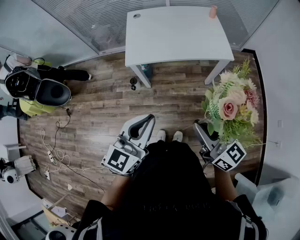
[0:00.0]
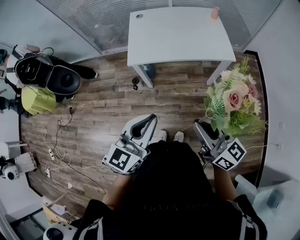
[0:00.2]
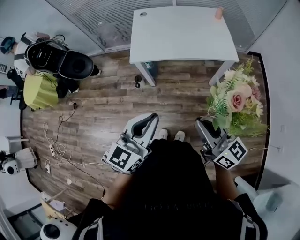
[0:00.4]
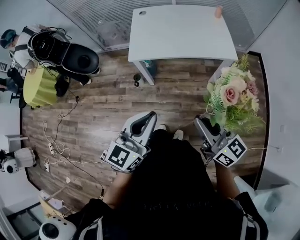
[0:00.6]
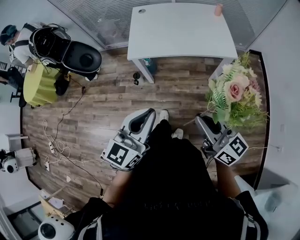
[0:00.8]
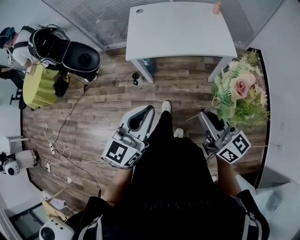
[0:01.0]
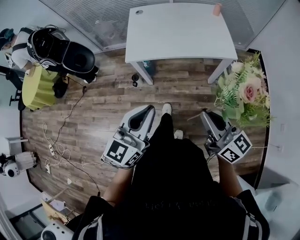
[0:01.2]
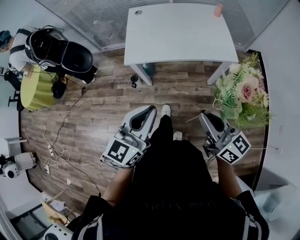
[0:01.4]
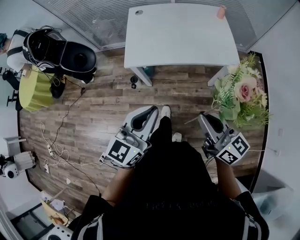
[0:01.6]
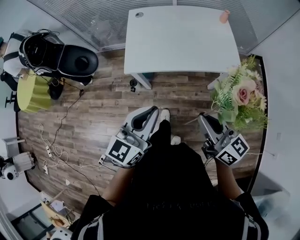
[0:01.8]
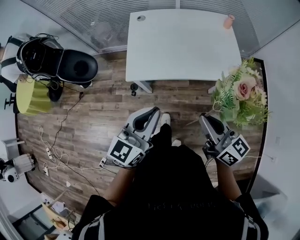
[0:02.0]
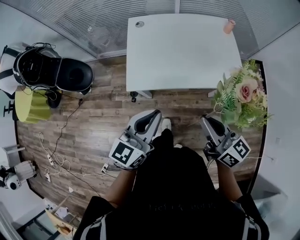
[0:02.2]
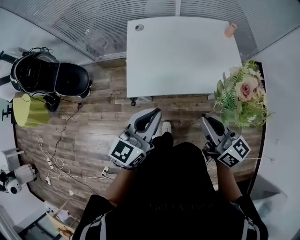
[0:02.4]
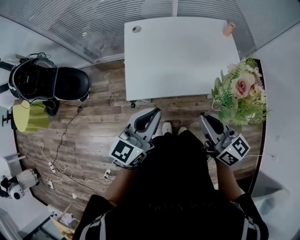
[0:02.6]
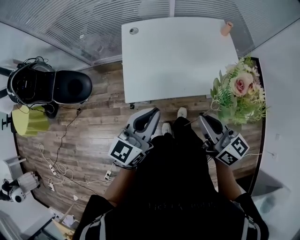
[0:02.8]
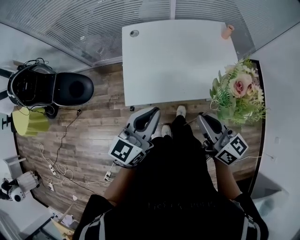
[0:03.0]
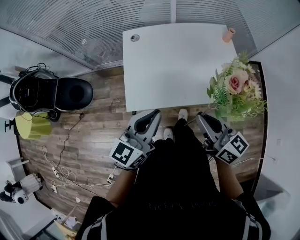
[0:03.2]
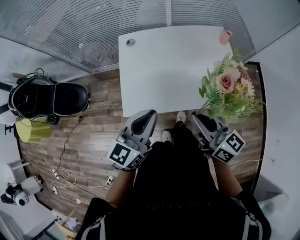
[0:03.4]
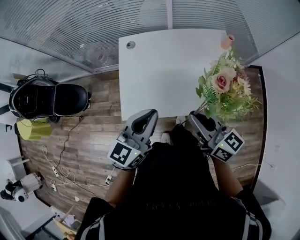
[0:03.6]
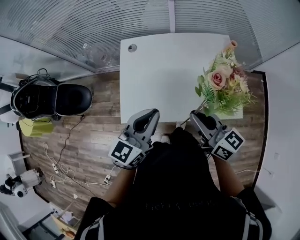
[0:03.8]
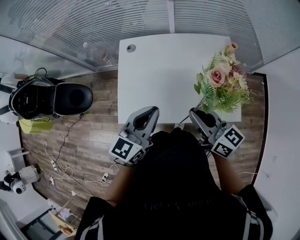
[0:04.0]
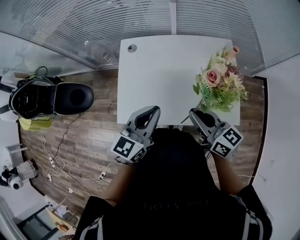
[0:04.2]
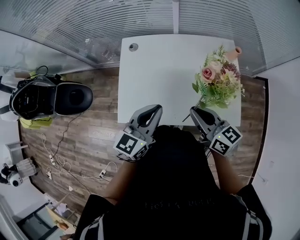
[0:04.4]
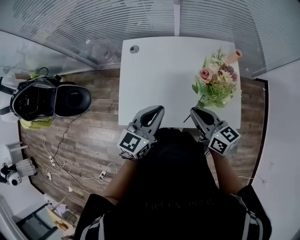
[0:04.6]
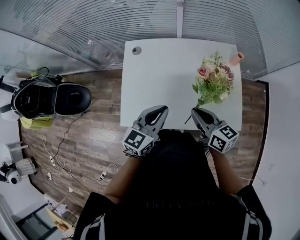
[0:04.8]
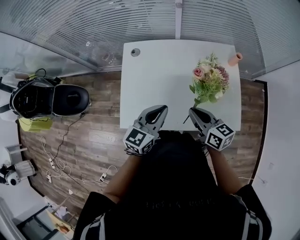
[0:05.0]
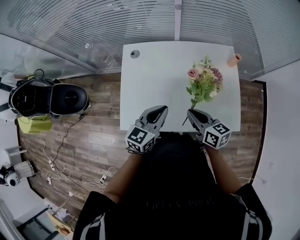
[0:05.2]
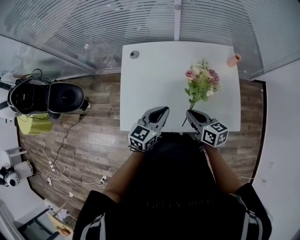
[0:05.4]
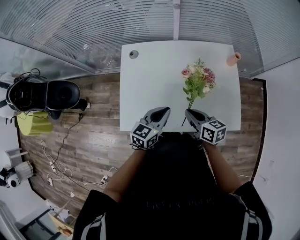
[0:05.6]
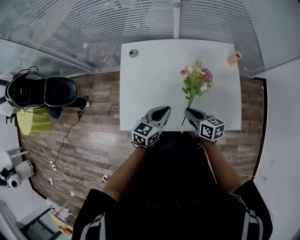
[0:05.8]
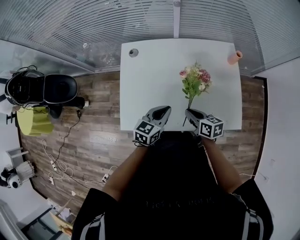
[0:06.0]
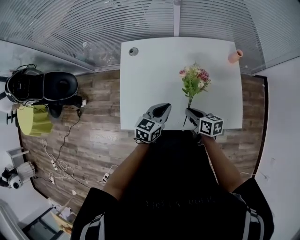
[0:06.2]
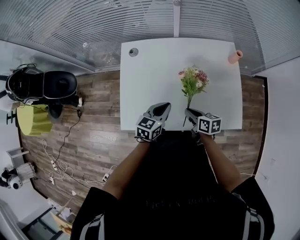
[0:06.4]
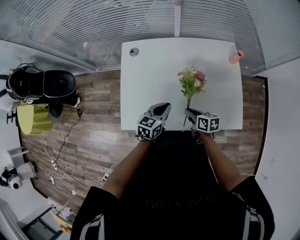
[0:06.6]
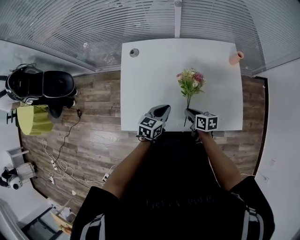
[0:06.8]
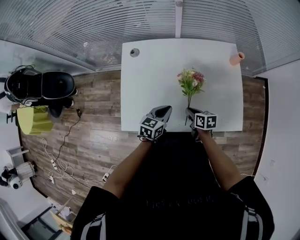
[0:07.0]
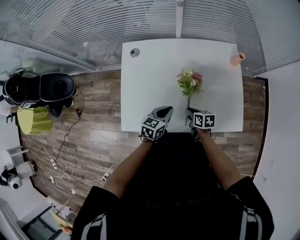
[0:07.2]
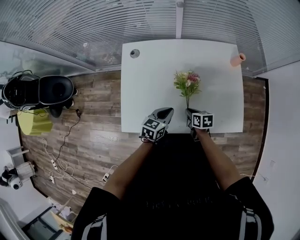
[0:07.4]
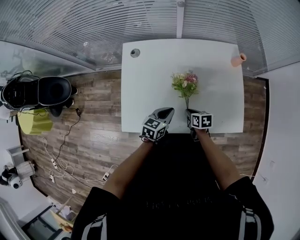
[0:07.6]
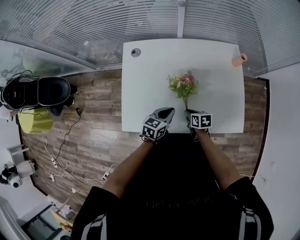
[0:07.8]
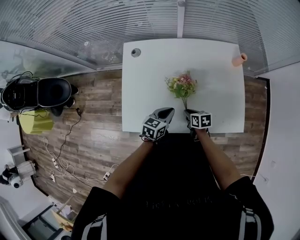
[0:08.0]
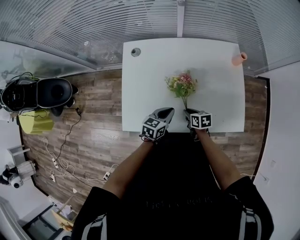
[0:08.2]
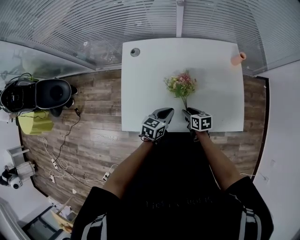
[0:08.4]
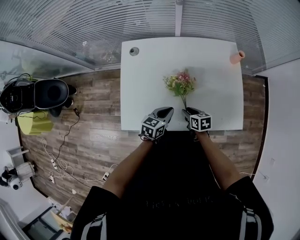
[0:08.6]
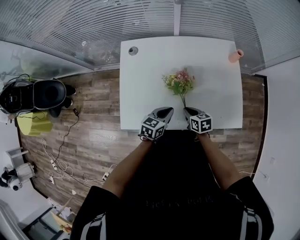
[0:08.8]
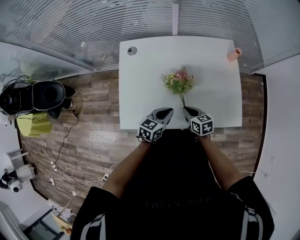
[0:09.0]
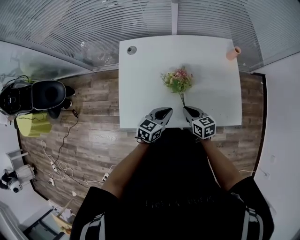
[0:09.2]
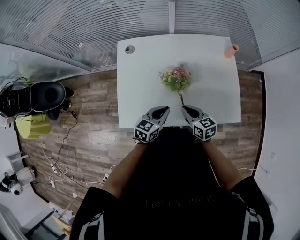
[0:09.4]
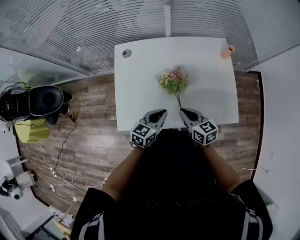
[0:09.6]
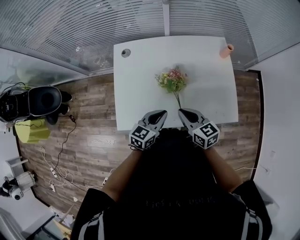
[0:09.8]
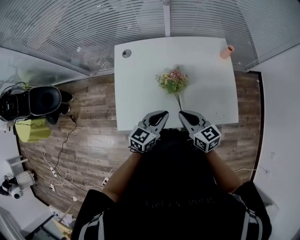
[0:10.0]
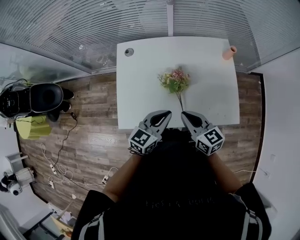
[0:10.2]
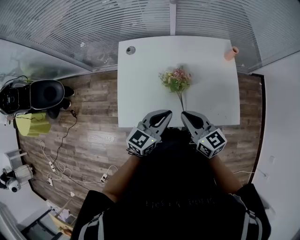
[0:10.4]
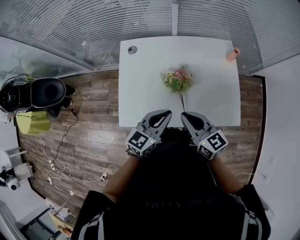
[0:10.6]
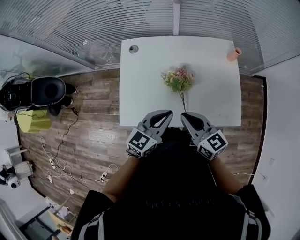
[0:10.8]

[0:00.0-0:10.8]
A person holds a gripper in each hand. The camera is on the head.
0:00.0 to 0:01.6: Both grippers move forward, about 10 cm.
0:01.6 to 0:03.0: The grippers both shift forward by roughly 25 cm.
0:03.0 to 0:04.6: The two grippers go about 15 cm forward, to the right and downward.
0:04.6 to 0:06.2: Both grippers move downward, some 15 cm. The right gripper rotates some 30 degrees.
0:06.2 to 0:07.8: The right gripper goes some 10 cm downward; the left gripper shifts approximately 5 cm downward.
0:07.8 to 0:09.2: The right gripper moves upward, about 10 cm, swivels approximately 20 degrees, and opens and closes again.
0:09.2 to 0:10.8: Both grippers move upward, some 15 cm. The right gripper changes its angle by roughly 20 degrees.

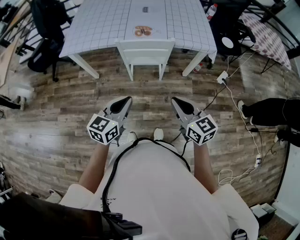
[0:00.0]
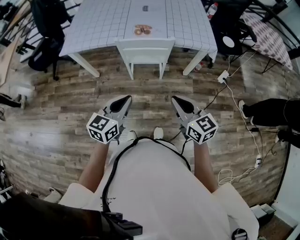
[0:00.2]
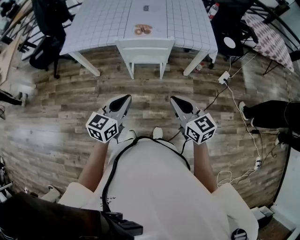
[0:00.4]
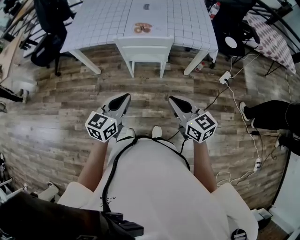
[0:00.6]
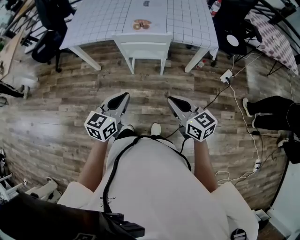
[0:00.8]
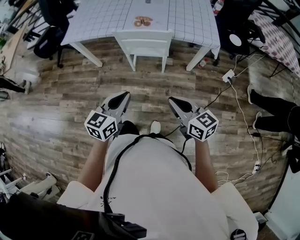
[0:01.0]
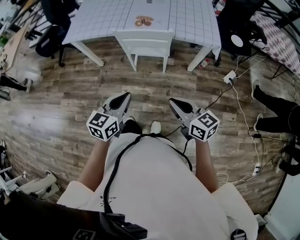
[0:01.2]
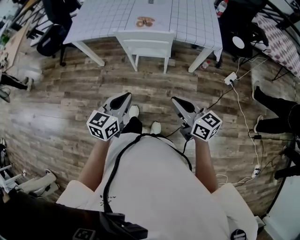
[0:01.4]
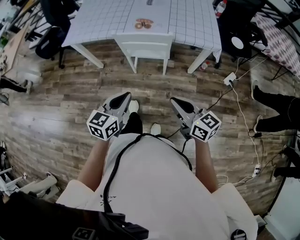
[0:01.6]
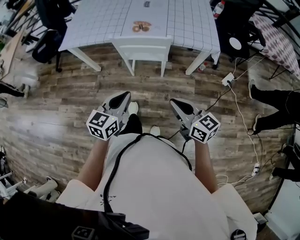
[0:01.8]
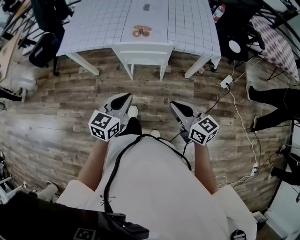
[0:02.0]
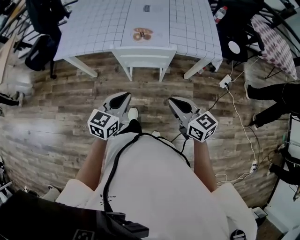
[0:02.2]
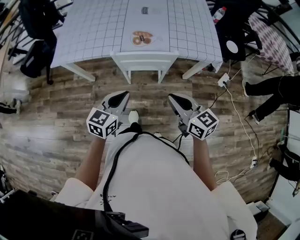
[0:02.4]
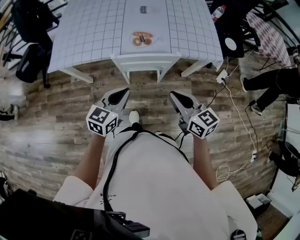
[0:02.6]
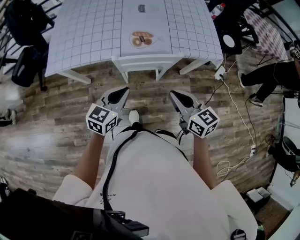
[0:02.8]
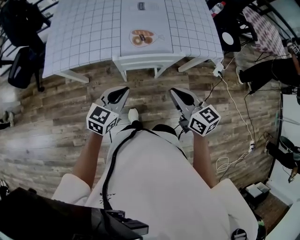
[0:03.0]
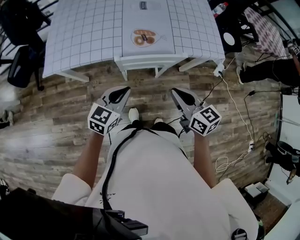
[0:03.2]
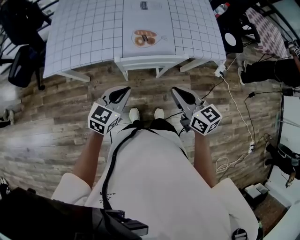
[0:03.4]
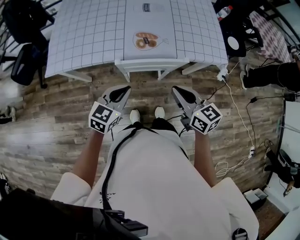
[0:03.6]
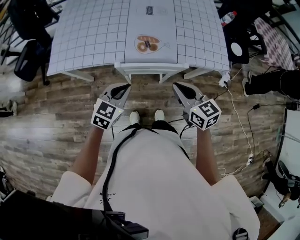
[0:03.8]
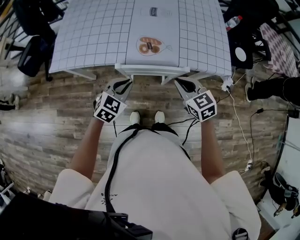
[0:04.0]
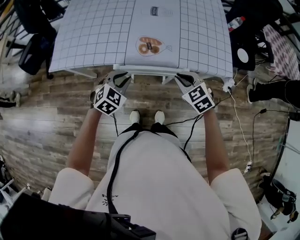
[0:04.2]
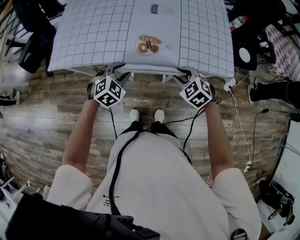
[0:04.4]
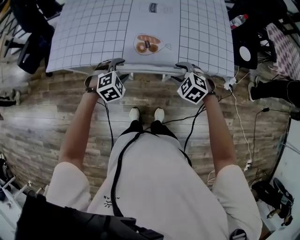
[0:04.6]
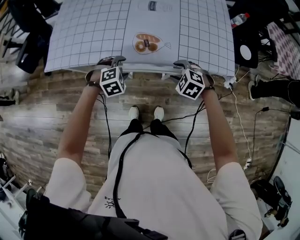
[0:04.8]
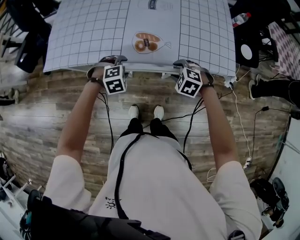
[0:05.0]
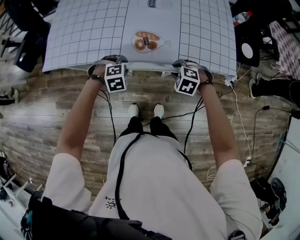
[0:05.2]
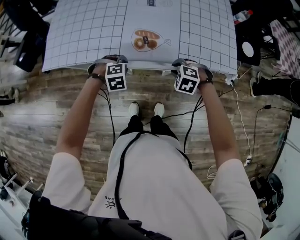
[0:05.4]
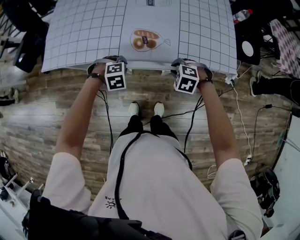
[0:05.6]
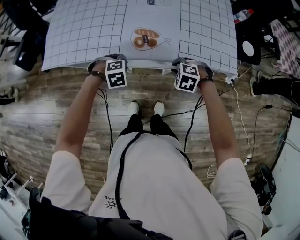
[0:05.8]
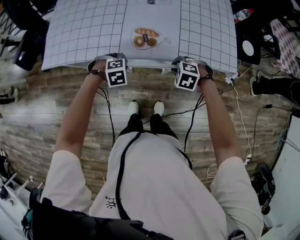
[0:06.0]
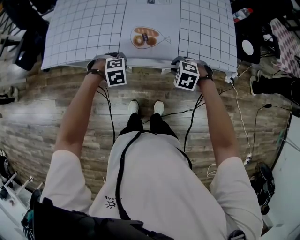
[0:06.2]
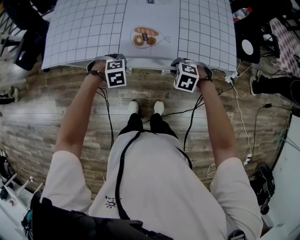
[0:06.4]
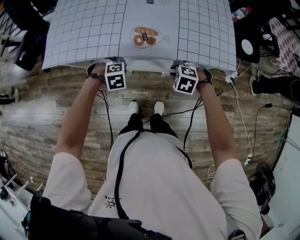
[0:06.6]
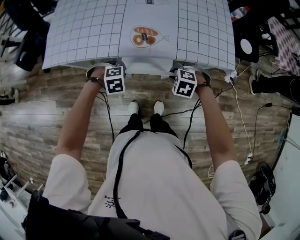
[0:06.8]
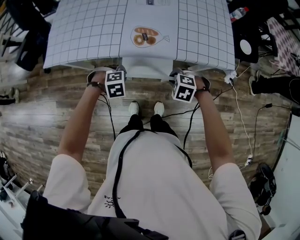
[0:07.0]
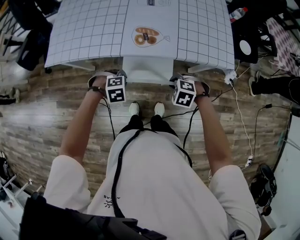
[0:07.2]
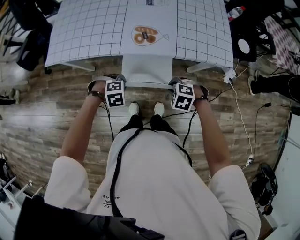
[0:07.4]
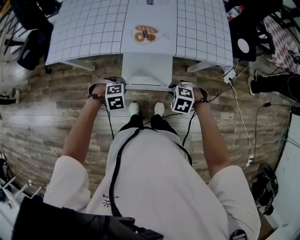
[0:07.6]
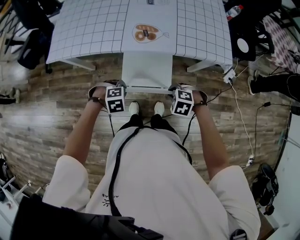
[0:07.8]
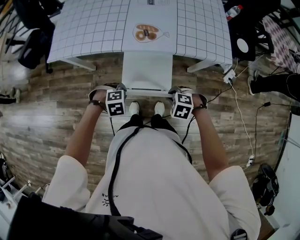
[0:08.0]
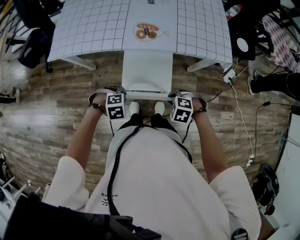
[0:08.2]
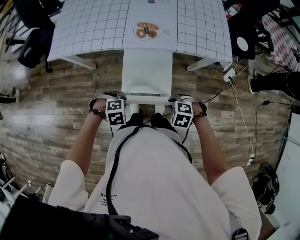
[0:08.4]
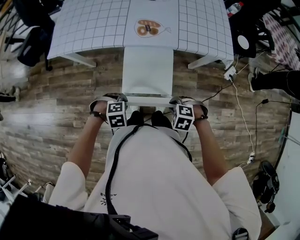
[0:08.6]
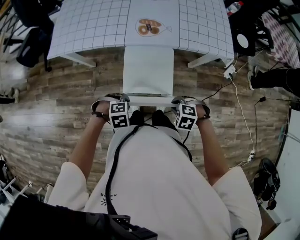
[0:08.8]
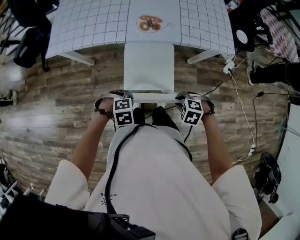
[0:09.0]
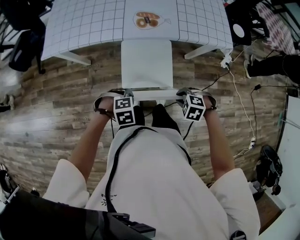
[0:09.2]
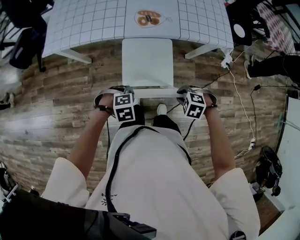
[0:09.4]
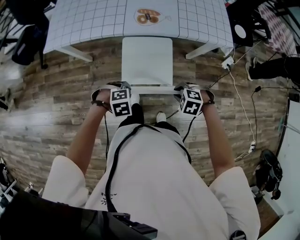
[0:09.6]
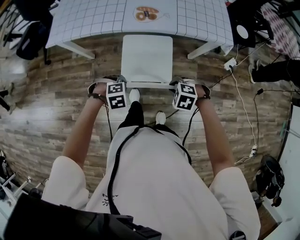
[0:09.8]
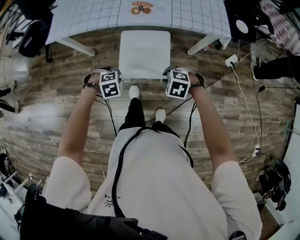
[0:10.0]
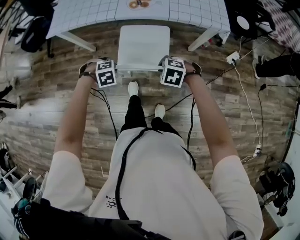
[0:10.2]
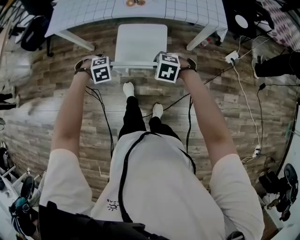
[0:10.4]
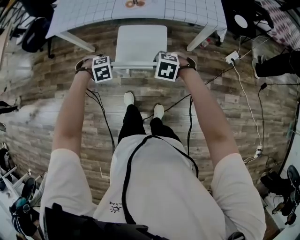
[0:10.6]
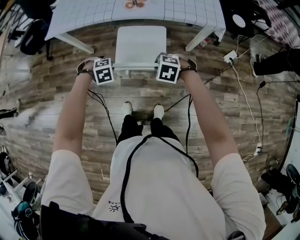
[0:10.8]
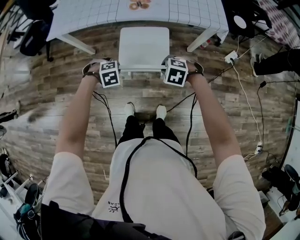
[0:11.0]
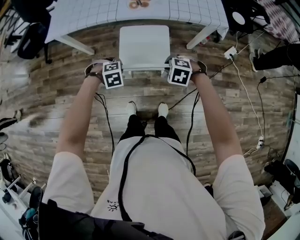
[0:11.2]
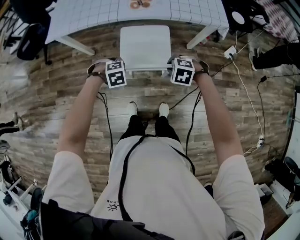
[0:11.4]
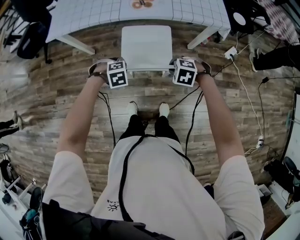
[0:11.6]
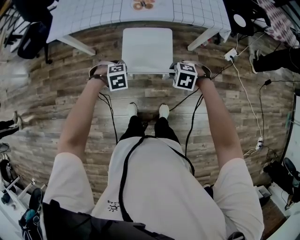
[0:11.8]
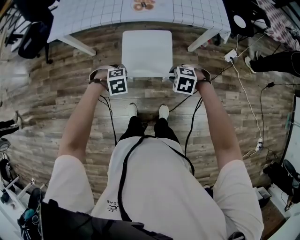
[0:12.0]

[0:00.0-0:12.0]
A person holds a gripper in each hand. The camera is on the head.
0:00.0 to 0:01.6: The grippers both shift to the right by approximately 10 cm.
0:01.6 to 0:03.0: The two grippers go roughly 30 cm forward and to the left. The left gripper rotates approximately 20 degrees.
0:03.0 to 0:04.4: Both grippers move forward and downward, roughly 20 cm. The left gripper turns by some 40 degrees, and opens up; the right gripper rotates around the line of its fingers by approximately 50 degrees, counterclockwise from behind, and opens.
0:04.4 to 0:06.0: Both grippers move downward, approximately 10 cm. The right gripper turns by some 30 degrees, and opens, then closes again; the left gripper tips its fingers downward by approximately 30 degrees, and opens, then closes again.
0:06.0 to 0:07.6: The left gripper changes place by about 15 cm, while the right gripper moves some 15 cm.
0:07.6 to 0:09.0: The right gripper changes place by some 15 cm. Meanwhile the left gripper shifts by some 15 cm.
0:09.0 to 0:12.0: There are only small adjustments of the grippers.

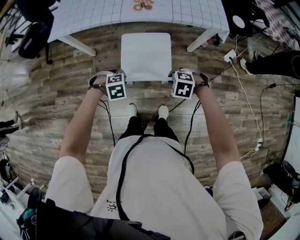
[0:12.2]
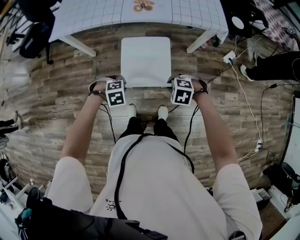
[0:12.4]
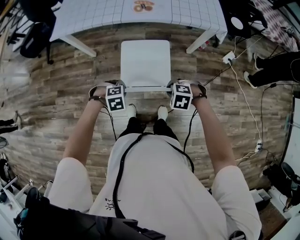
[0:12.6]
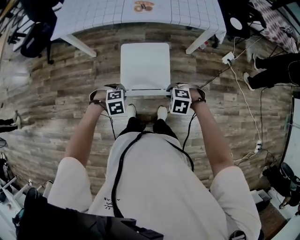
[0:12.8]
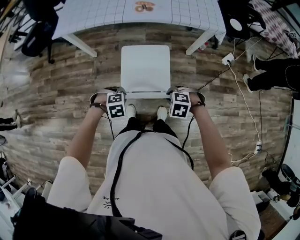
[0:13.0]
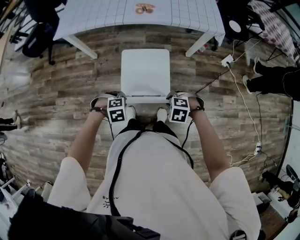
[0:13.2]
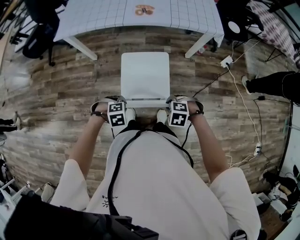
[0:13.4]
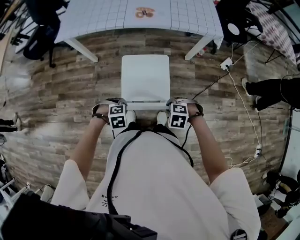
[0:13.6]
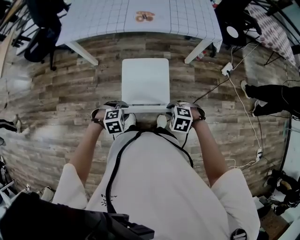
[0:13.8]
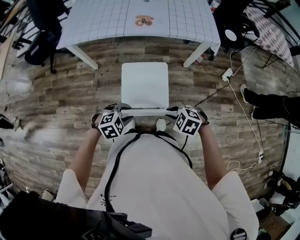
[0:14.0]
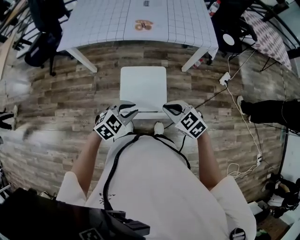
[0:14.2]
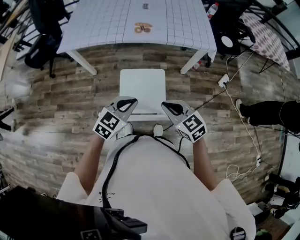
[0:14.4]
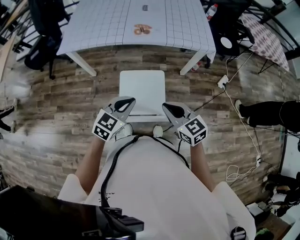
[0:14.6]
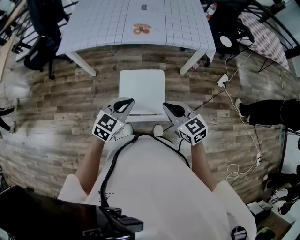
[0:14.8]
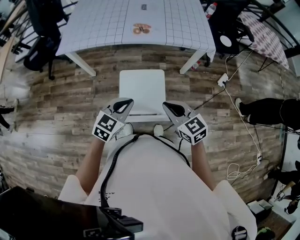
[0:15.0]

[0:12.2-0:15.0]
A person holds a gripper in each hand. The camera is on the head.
0:12.2 to 0:13.6: The right gripper moves roughly 15 cm; the left gripper moves approximately 15 cm.
0:13.6 to 0:15.0: Both grippers move upward, roughly 20 cm. The right gripper angles its fingers upward, by roughly 50 degrees, while the left gripper tilts its fingers roughly 50 degrees upward.
